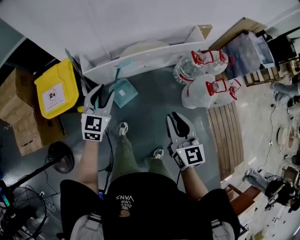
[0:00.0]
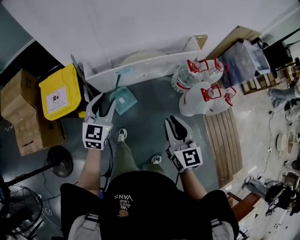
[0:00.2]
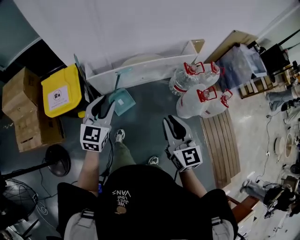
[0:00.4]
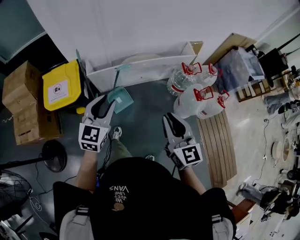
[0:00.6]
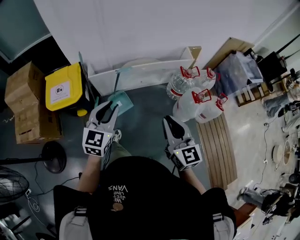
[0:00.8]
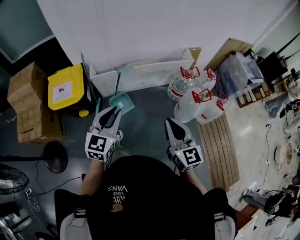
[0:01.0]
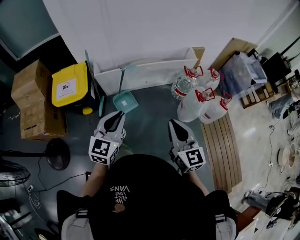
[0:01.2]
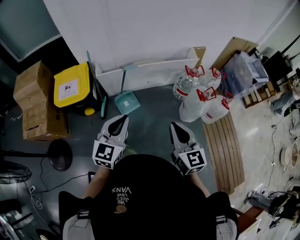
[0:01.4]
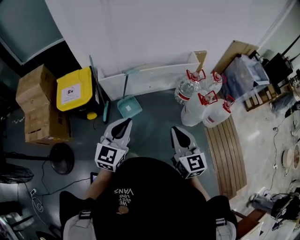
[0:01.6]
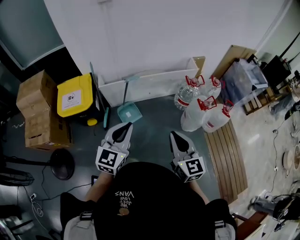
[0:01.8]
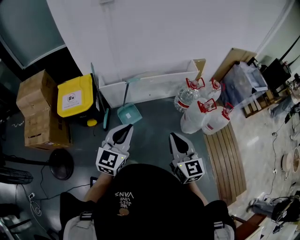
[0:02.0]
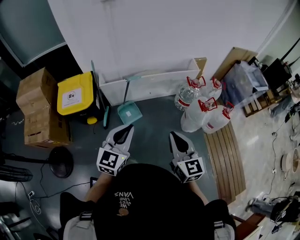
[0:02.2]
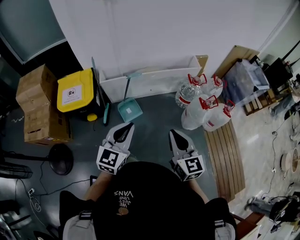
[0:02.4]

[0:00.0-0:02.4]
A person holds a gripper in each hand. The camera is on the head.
0:00.0 to 0:01.2: The two grippers go about 25 cm backward and upward.
0:01.2 to 0:02.4: The grippers make only small movements.

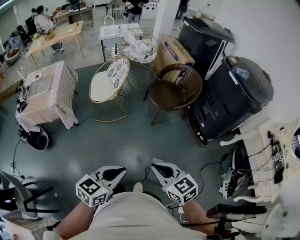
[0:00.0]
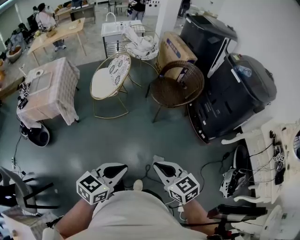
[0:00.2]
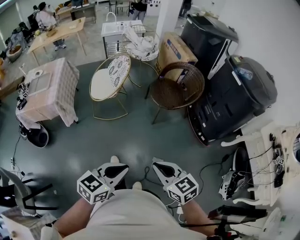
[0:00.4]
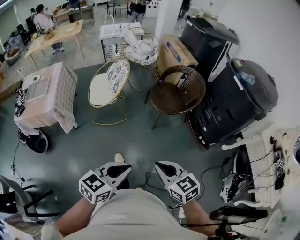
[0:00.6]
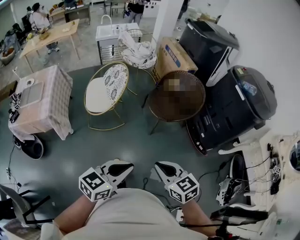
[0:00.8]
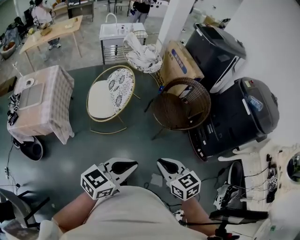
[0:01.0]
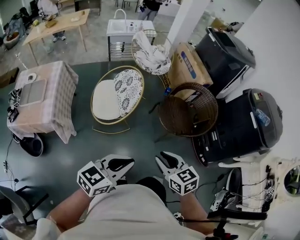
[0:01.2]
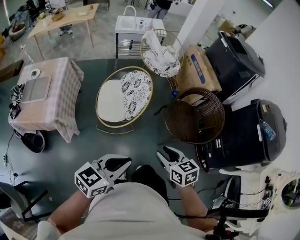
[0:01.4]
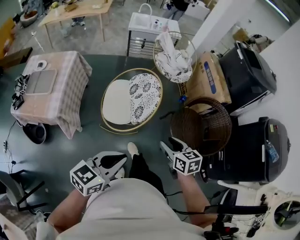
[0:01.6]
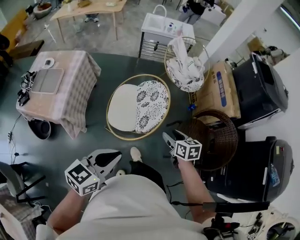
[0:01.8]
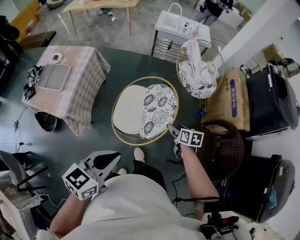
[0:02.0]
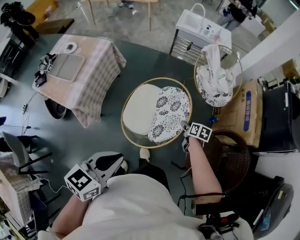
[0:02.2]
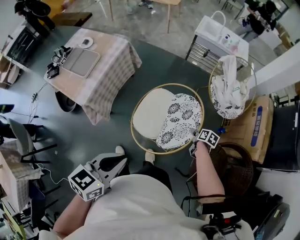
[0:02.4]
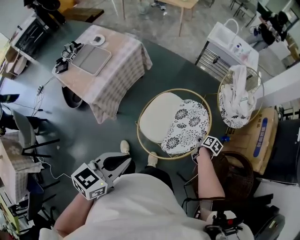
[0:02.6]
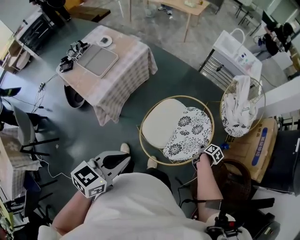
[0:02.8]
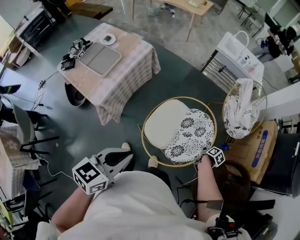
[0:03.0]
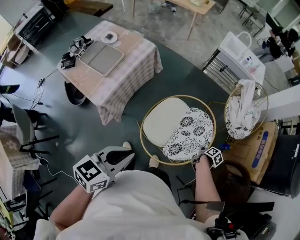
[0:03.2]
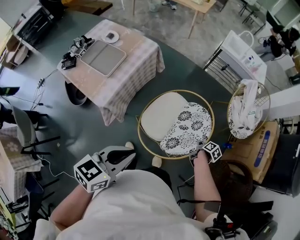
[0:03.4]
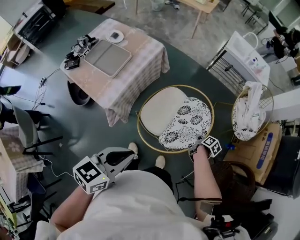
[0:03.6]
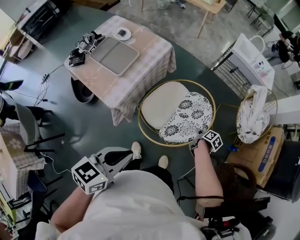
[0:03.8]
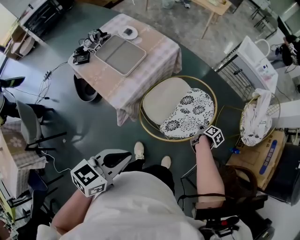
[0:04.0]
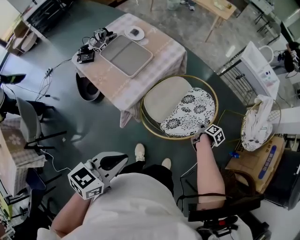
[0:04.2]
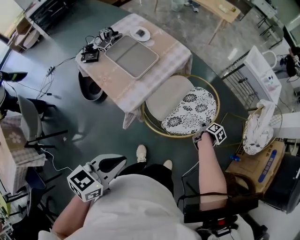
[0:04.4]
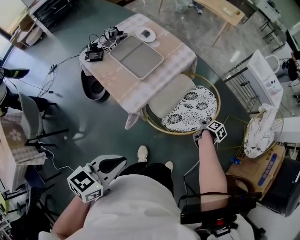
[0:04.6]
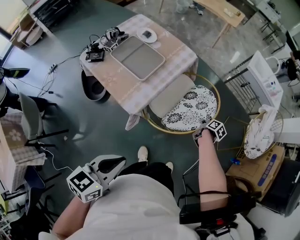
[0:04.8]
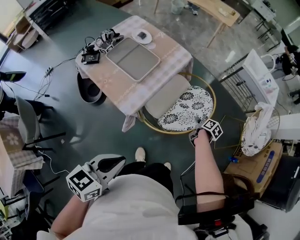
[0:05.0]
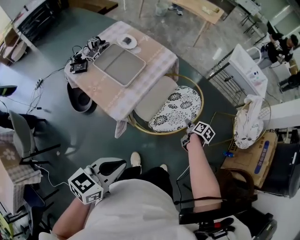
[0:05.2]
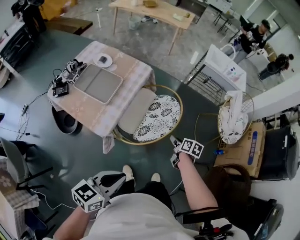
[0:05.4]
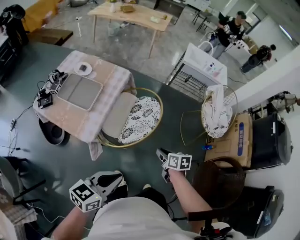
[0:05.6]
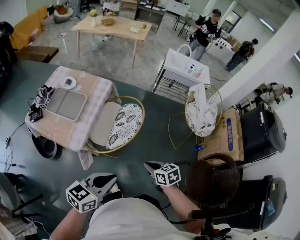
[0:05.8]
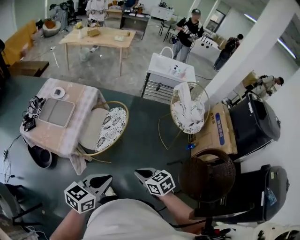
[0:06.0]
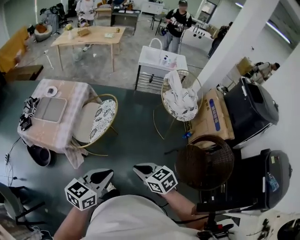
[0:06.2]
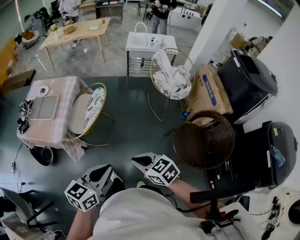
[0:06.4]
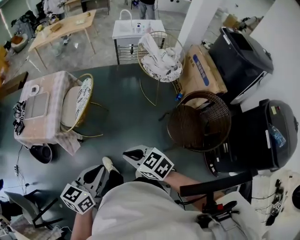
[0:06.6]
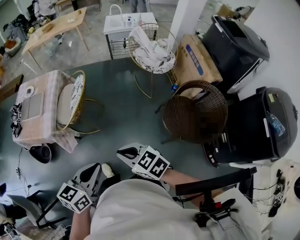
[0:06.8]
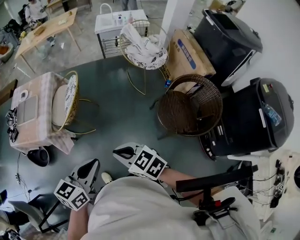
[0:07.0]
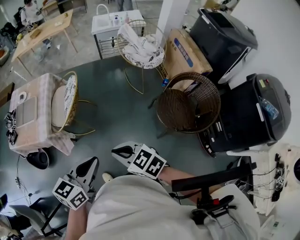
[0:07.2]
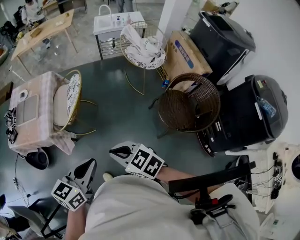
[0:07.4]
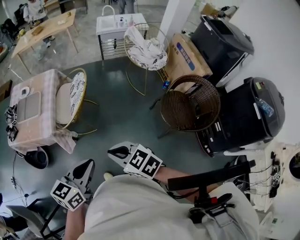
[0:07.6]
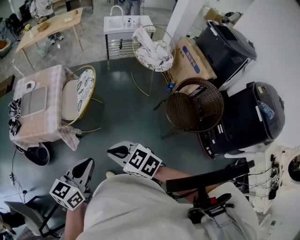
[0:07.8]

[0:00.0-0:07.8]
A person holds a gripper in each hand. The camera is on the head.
0:00.0 to 0:01.6: The two grippers travel together, forward, approximately 50 cm. The right gripper opens.
0:01.6 to 0:03.2: The right gripper shifts some 40 cm forward and downward, rotates around the line of its fingers by some 40 degrees, clockwise from behind, and closes; the left gripper heads forward and to the left, covering roughly 25 cm, and turns by approximately 30 degrees.
0:03.2 to 0:04.6: The right gripper is displaced to the left and forward by some 35 cm, while the left gripper is displaced to the left by about 25 cm.
0:04.6 to 0:06.2: The left gripper is displaced to the right by approximately 25 cm, and rotates some 30 degrees. Meanwhile the right gripper shifts roughly 50 cm backward and upward, twists approximately 50 degrees counterclockwise, seen from behind, and opens, then closes again.
0:06.2 to 0:07.8: Both grippers move backward and to the left, approximately 15 cm.

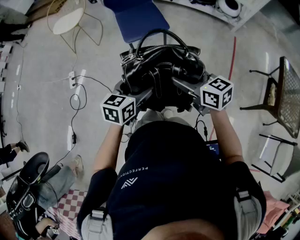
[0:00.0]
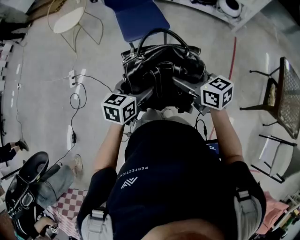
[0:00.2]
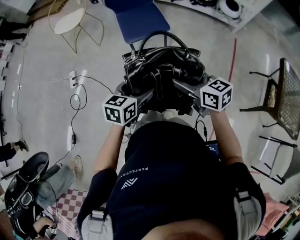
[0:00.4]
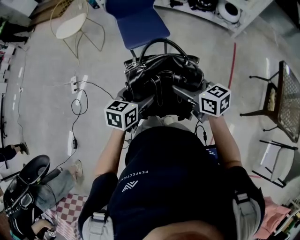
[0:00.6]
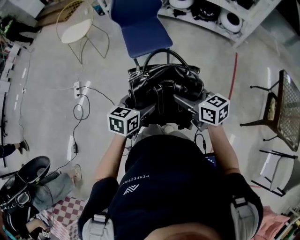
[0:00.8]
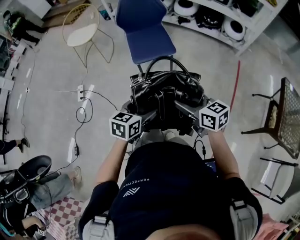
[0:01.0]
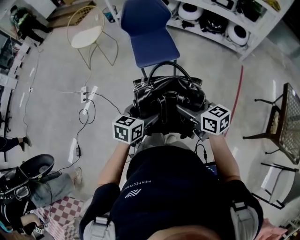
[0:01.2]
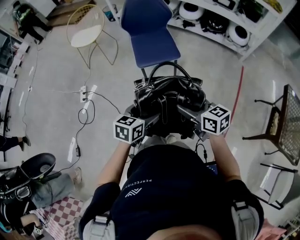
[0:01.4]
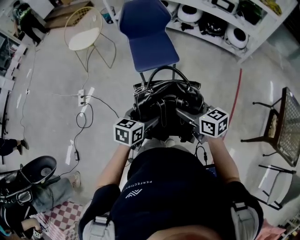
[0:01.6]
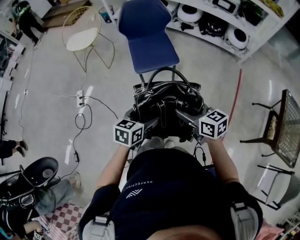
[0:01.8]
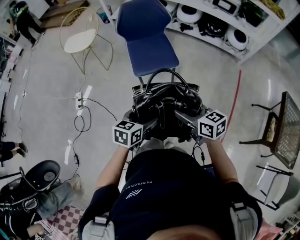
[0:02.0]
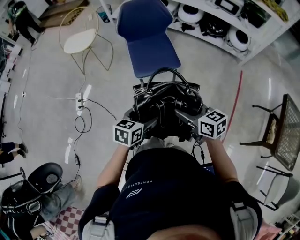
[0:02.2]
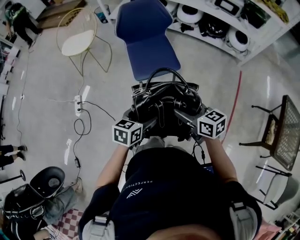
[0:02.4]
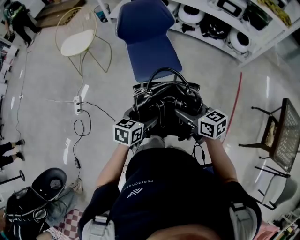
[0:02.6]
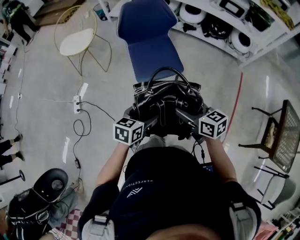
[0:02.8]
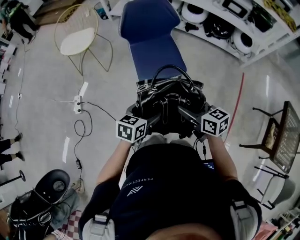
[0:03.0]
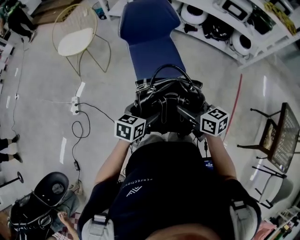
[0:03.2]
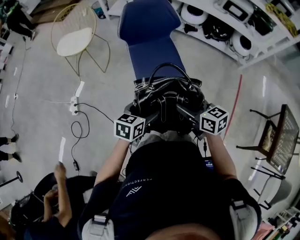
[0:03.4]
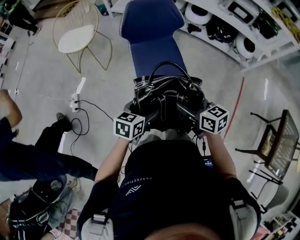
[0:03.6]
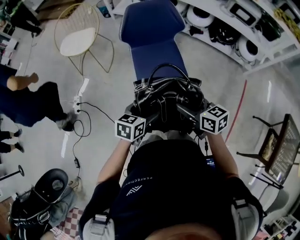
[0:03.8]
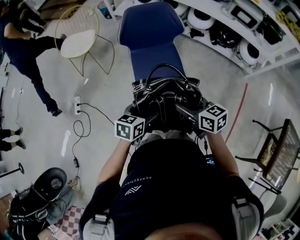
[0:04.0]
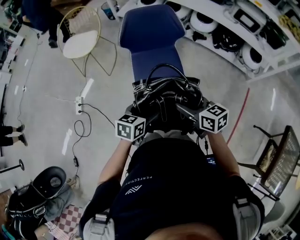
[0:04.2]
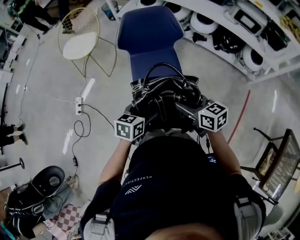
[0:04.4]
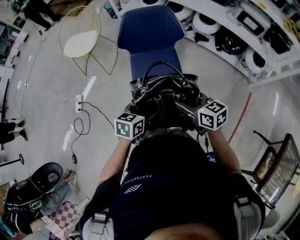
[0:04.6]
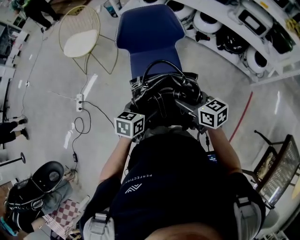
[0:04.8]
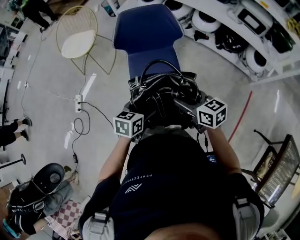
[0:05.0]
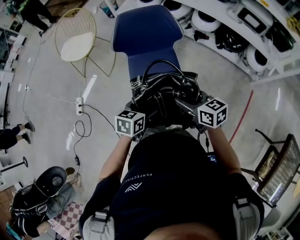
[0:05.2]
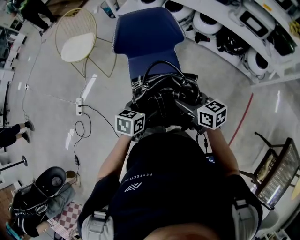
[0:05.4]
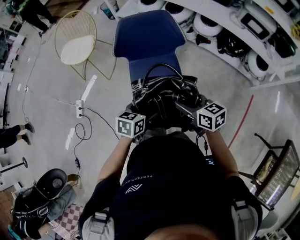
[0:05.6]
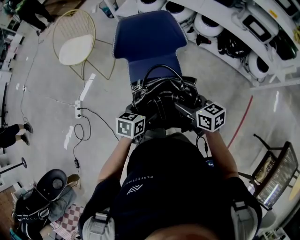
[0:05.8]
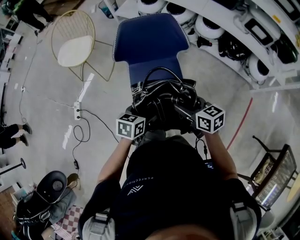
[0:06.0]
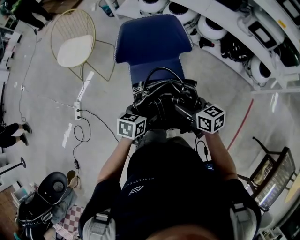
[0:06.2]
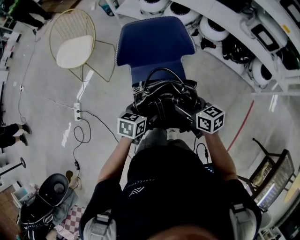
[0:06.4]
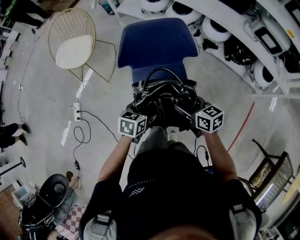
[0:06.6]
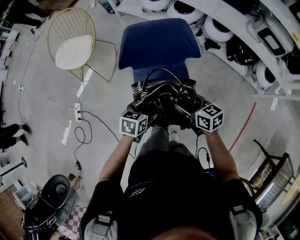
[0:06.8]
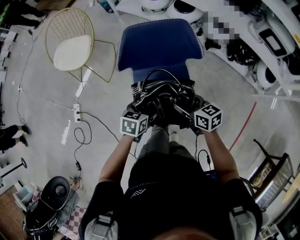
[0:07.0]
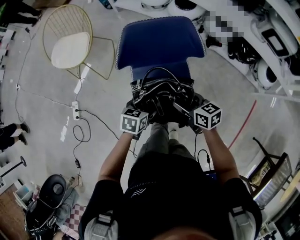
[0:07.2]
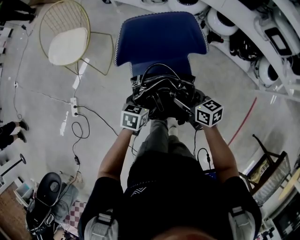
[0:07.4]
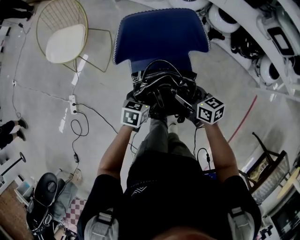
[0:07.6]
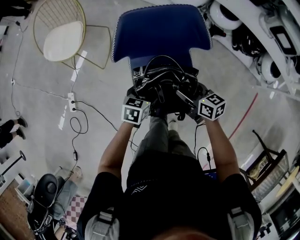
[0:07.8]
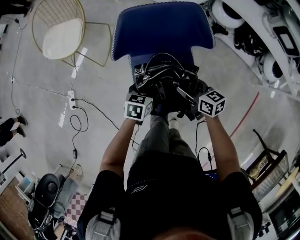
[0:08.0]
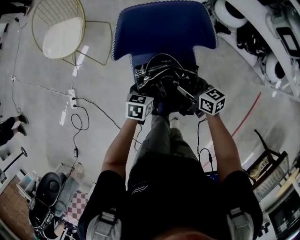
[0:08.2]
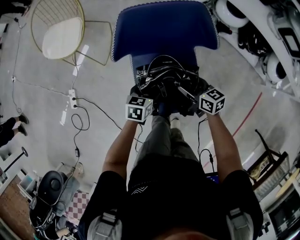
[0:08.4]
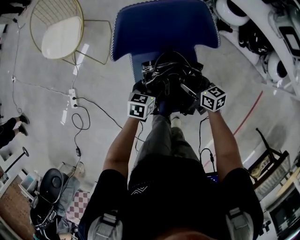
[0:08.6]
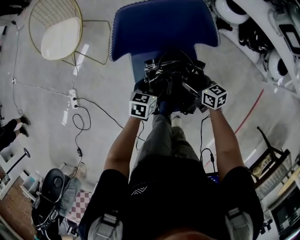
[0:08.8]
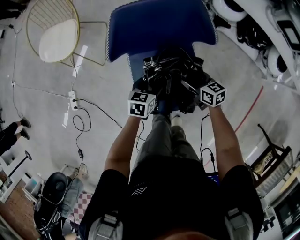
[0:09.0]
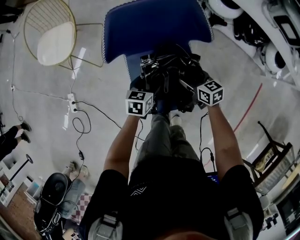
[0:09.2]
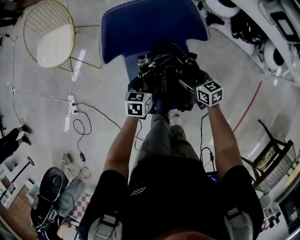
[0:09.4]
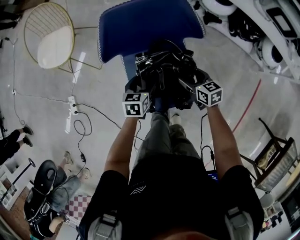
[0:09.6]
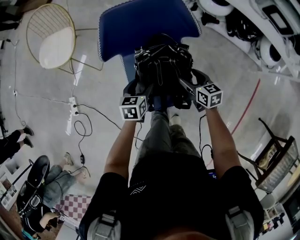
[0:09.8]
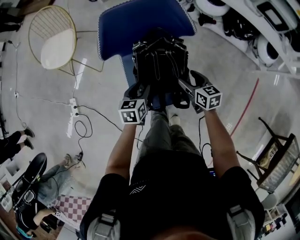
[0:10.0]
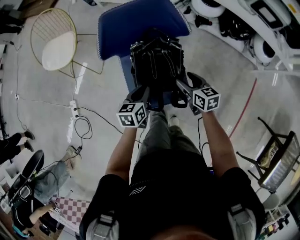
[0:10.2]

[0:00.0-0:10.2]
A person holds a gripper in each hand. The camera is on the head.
0:00.0 to 0:01.4: There are only small adjustments of the grippers.
0:01.4 to 0:03.0: The grippers both shift forward by about 20 cm.
0:03.0 to 0:04.4: The grippers both shift forward and to the right by roughly 15 cm.
0:04.4 to 0:05.8: The grippers both shift forward by approximately 10 cm.
0:05.8 to 0:07.2: The two grippers go some 15 cm forward and downward.
0:07.2 to 0:08.8: Both grippers travel together downward and forward, approximately 10 cm.
0:08.8 to 0:10.2: The left gripper shifts about 10 cm upward and backward, and closes its fingers. Meanwhile the right gripper heads backward, upward and to the right, covering roughly 10 cm.

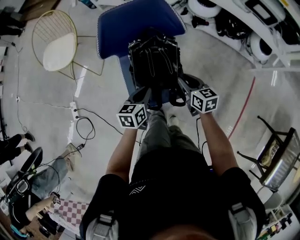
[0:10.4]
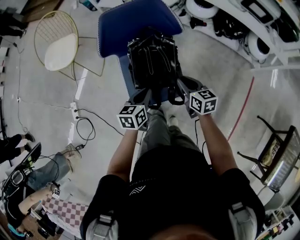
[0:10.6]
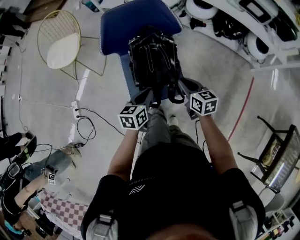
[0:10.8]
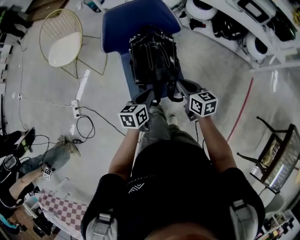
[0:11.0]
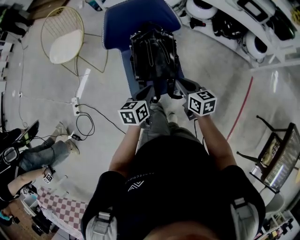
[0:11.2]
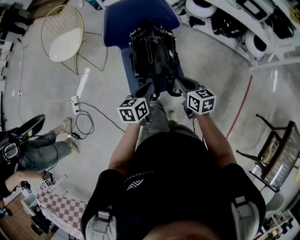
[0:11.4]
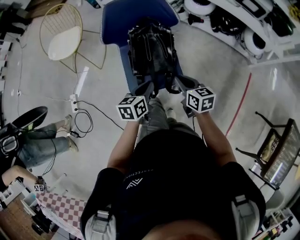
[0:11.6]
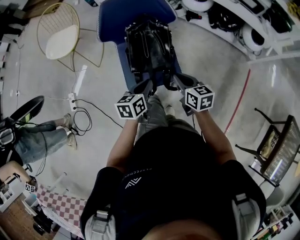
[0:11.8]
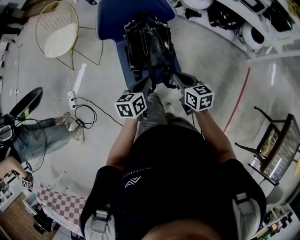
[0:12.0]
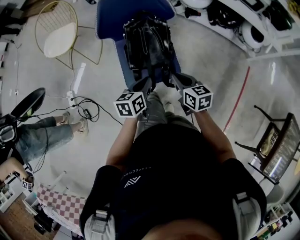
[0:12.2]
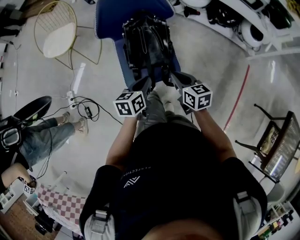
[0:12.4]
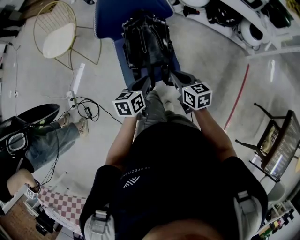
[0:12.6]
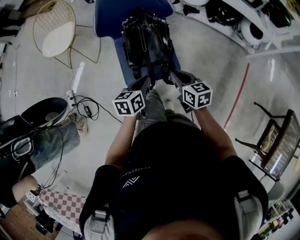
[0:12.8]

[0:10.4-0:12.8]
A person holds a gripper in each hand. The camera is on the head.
0:10.4 to 0:11.6: The left gripper is displaced backward by about 10 cm; the right gripper moves backward and upward, approximately 10 cm.
0:11.6 to 0:12.8: The grippers move only a little.
